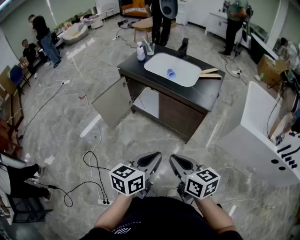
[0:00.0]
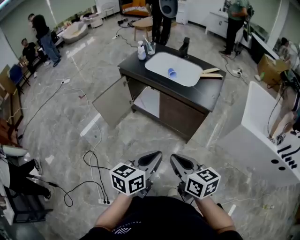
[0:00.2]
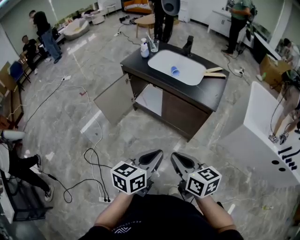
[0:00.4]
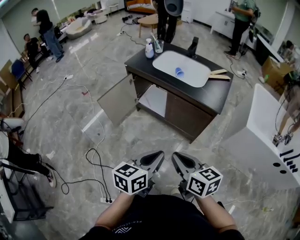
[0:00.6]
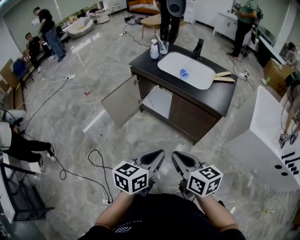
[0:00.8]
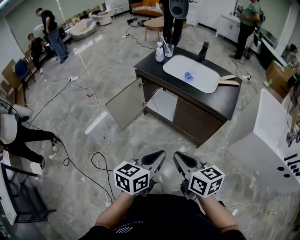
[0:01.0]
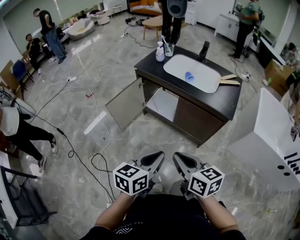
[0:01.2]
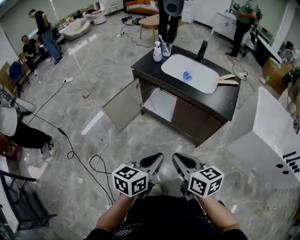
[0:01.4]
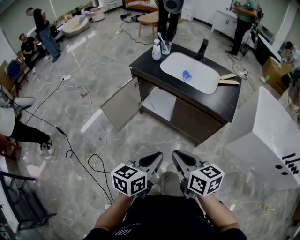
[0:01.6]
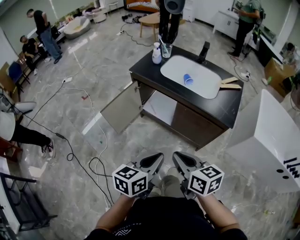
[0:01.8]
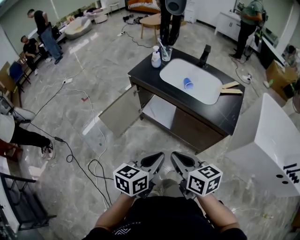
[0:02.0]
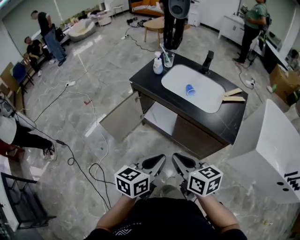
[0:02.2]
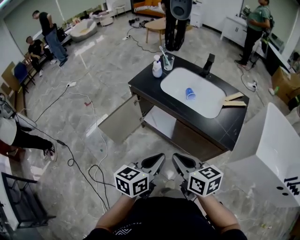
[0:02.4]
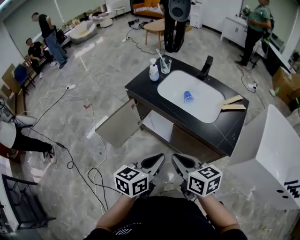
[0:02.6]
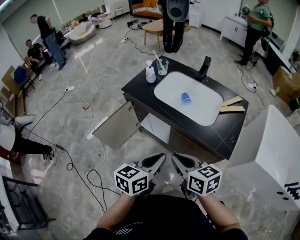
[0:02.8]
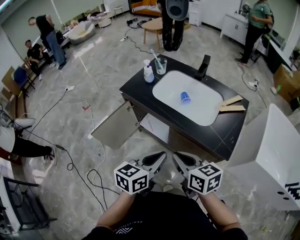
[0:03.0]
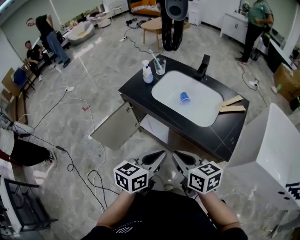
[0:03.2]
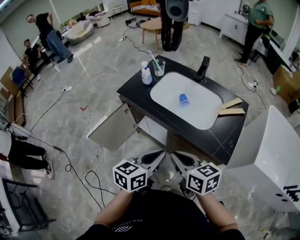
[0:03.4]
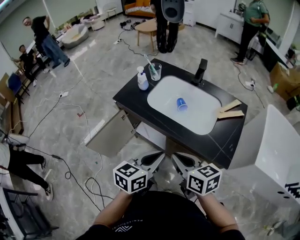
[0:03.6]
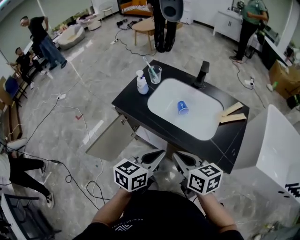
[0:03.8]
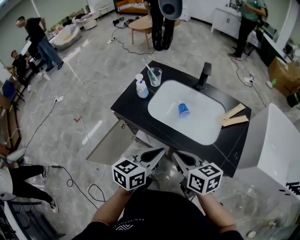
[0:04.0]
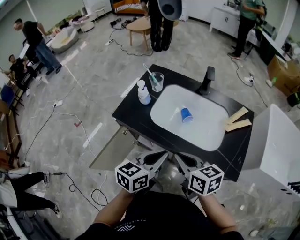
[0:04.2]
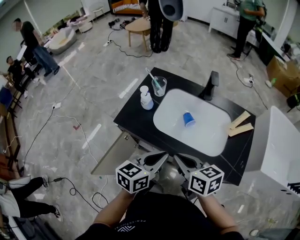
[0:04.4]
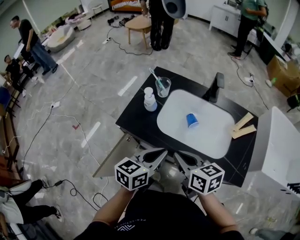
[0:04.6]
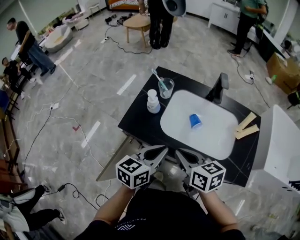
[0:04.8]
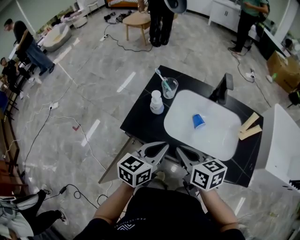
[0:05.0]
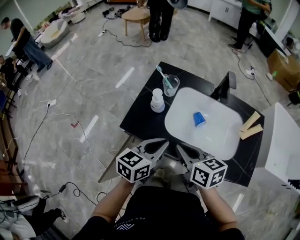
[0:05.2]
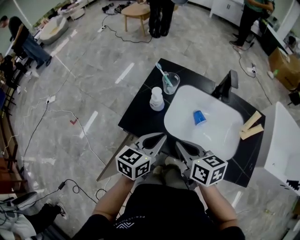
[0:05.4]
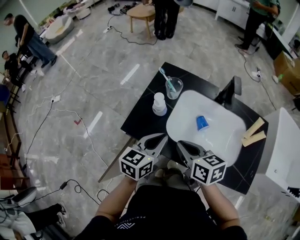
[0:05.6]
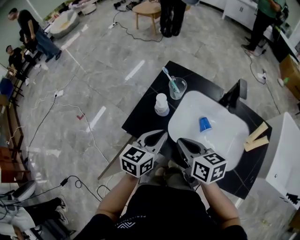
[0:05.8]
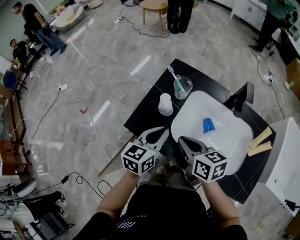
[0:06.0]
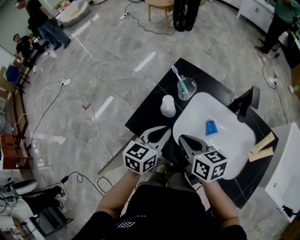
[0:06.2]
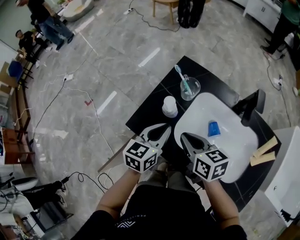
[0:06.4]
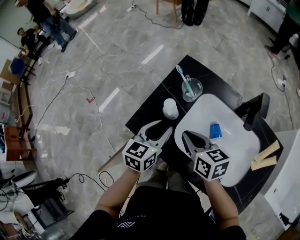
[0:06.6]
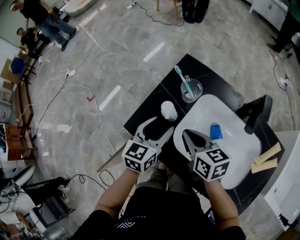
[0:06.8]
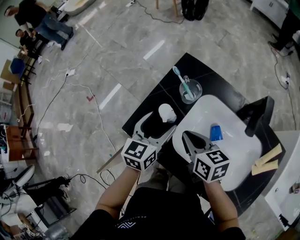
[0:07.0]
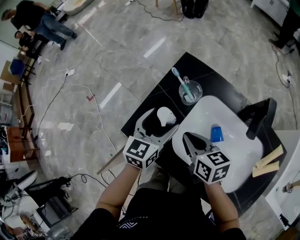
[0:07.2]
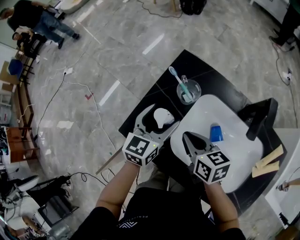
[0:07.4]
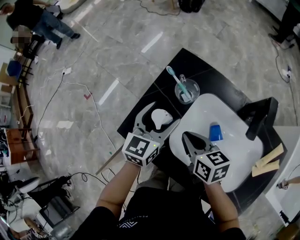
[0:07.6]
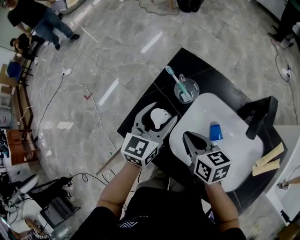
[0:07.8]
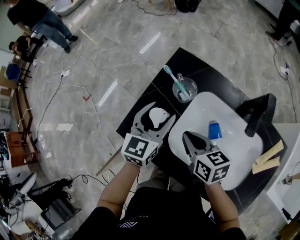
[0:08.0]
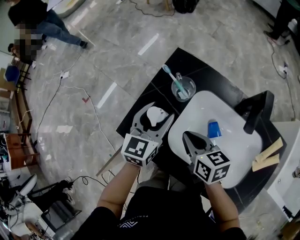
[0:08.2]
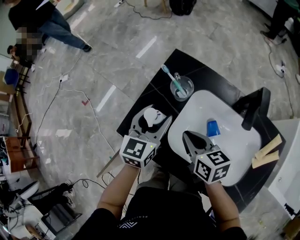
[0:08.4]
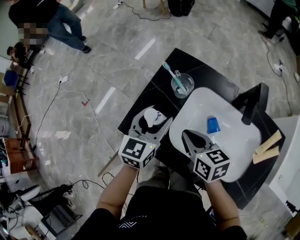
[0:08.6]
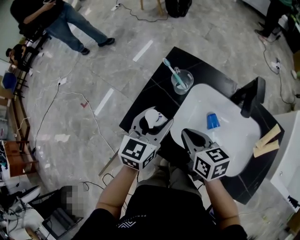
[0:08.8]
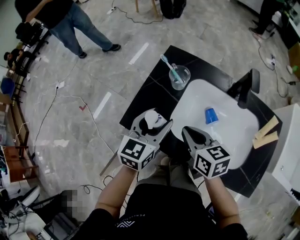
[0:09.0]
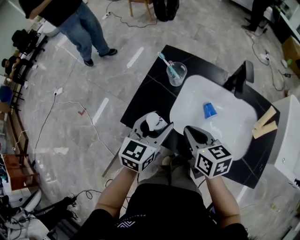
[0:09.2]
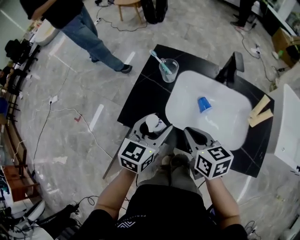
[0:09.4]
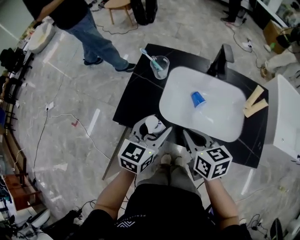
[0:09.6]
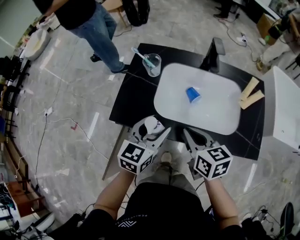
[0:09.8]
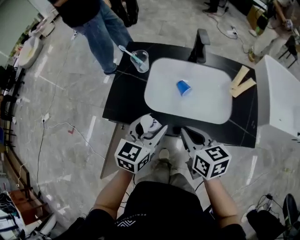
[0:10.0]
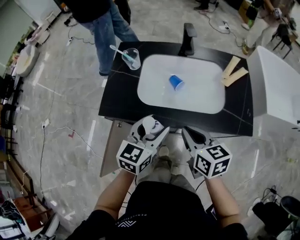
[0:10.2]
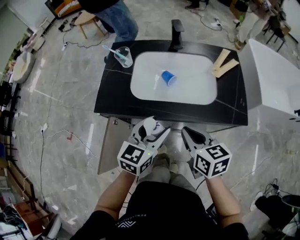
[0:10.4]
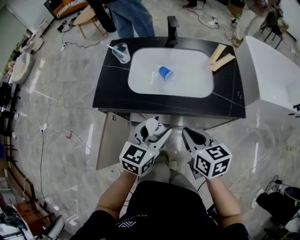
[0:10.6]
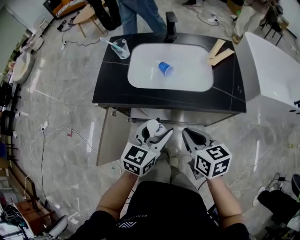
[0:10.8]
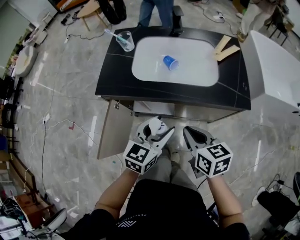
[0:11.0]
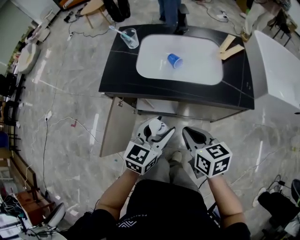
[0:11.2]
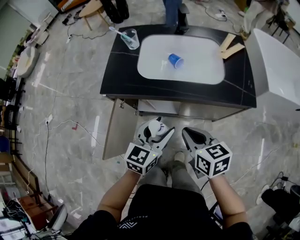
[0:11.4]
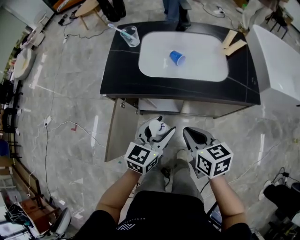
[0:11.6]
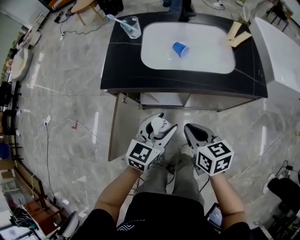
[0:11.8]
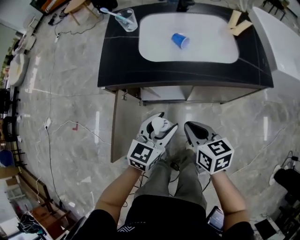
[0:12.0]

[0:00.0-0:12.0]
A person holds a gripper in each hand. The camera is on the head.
0.0 to 1.6 s: The two grippers go about 15 cm to the left and forward.
1.6 to 3.0 s: The grippers both shift forward and to the right by approximately 25 cm.
3.0 to 4.4 s: Both grippers travel together forward, some 20 cm.
4.4 to 6.0 s: The grippers both shift forward and to the left by some 20 cm.
6.0 to 7.6 s: The left gripper moves forward, approximately 10 cm, and opens up; the right gripper shifts roughly 10 cm forward and downward.
7.6 to 9.0 s: The two grippers go approximately 5 cm backward.
9.0 to 10.4 s: The left gripper moves some 25 cm, and rotates roughly 30 degrees, while the right gripper ends up some 25 cm from where it was, and rotates about 20 degrees.
10.4 to 12.0 s: The two grippers go about 15 cm downward, backward and to the left.

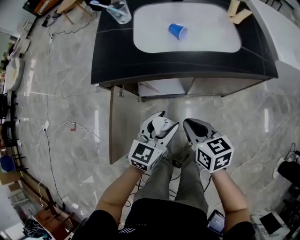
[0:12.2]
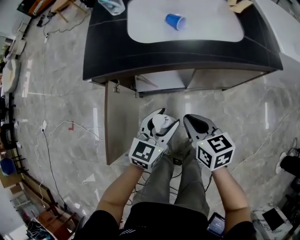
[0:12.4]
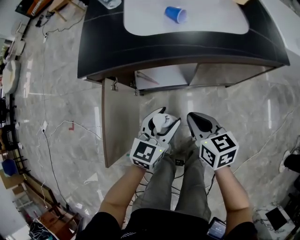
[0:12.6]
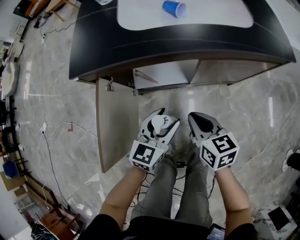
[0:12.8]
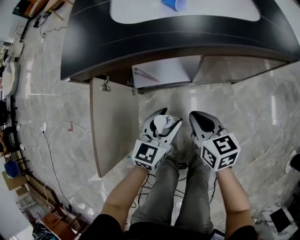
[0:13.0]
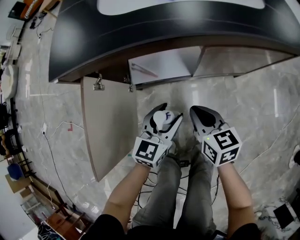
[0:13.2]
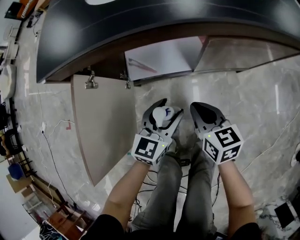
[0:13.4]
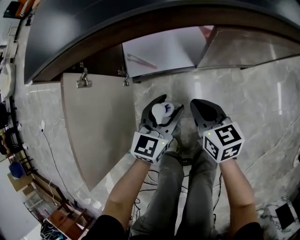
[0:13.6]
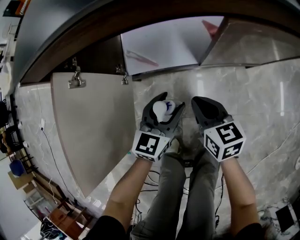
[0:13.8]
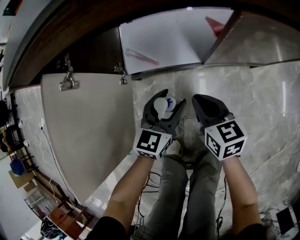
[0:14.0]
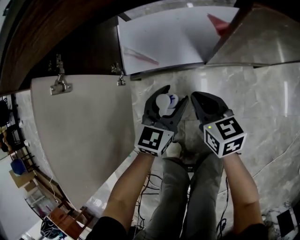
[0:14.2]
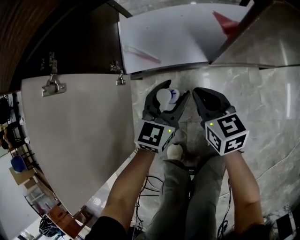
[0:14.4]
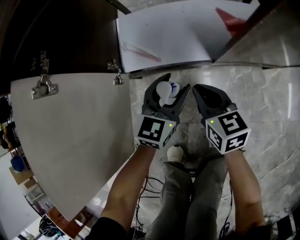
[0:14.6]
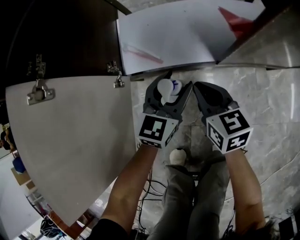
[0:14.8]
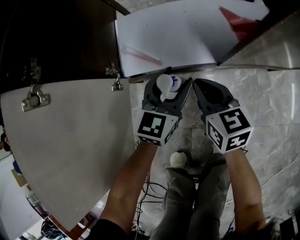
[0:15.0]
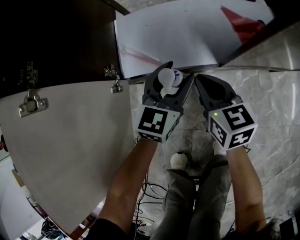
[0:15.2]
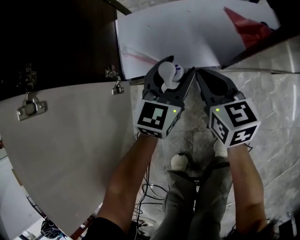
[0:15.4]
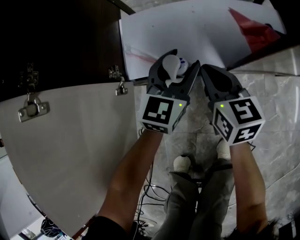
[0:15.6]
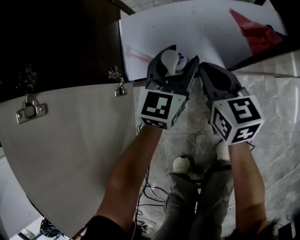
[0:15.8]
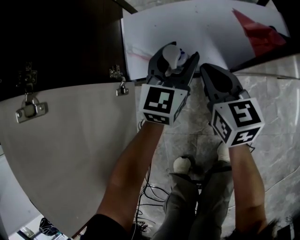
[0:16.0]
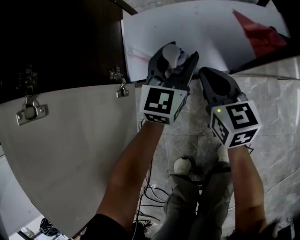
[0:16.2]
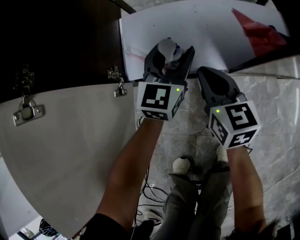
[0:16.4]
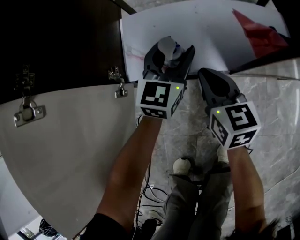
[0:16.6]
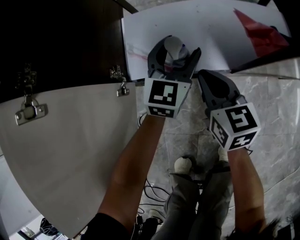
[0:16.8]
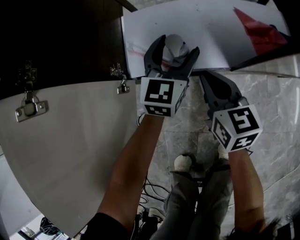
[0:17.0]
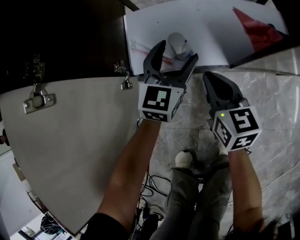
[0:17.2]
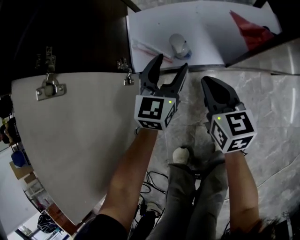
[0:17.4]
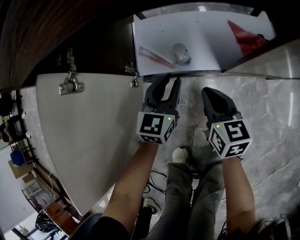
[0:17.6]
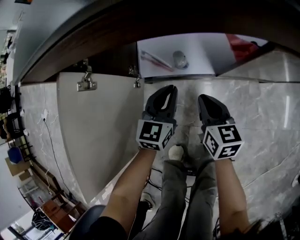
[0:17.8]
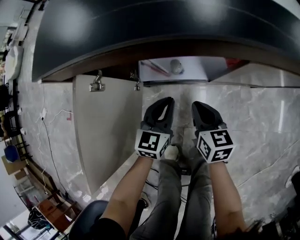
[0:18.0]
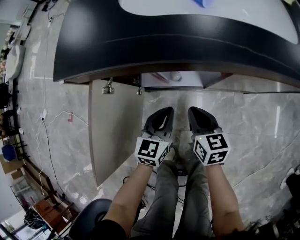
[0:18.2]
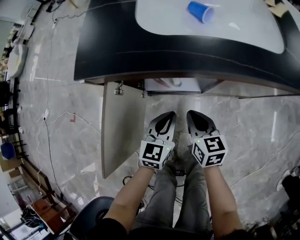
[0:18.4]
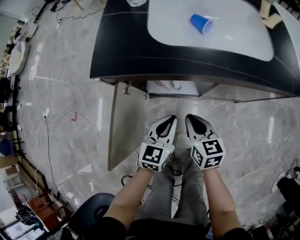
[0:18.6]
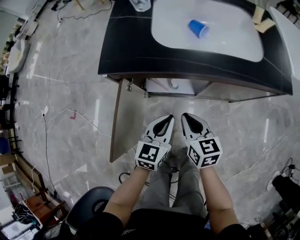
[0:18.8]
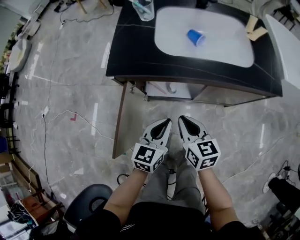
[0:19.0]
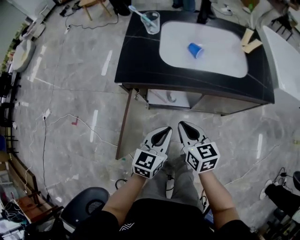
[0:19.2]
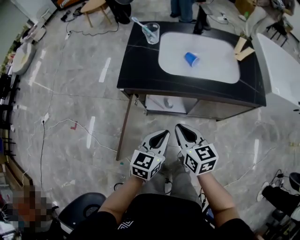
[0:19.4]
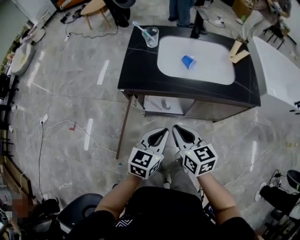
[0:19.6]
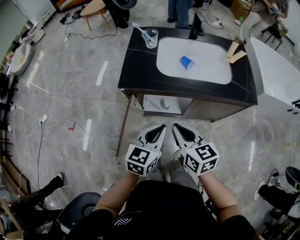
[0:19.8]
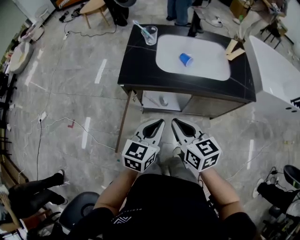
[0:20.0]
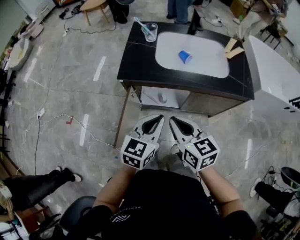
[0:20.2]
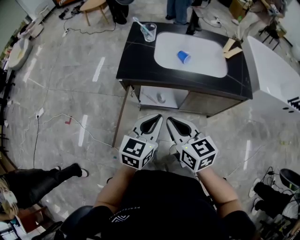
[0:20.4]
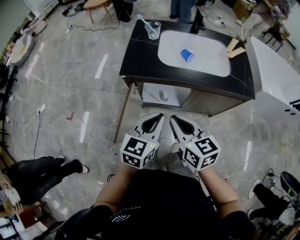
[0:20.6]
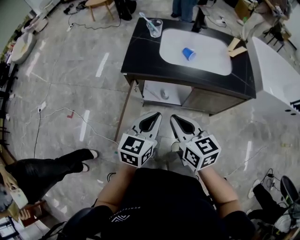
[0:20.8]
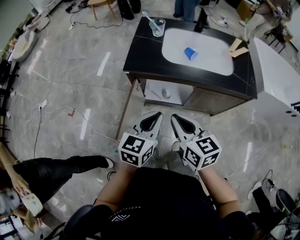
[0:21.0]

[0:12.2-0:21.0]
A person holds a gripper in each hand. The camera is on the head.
12.2 to 13.6 s: Both grippers move downward, some 25 cm.
13.6 to 15.2 s: The two grippers go about 20 cm downward and forward.
15.2 to 16.6 s: The left gripper heads forward, covering approximately 10 cm.
16.6 to 18.0 s: The left gripper heads backward and upward, covering roughly 20 cm, and closes up; the right gripper heads upward and backward, covering some 15 cm.
18.0 to 19.6 s: The grippers both shift upward by some 40 cm.
19.6 to 21.0 s: The right gripper moves upward and backward, roughly 10 cm, while the left gripper moves upward, approximately 5 cm.

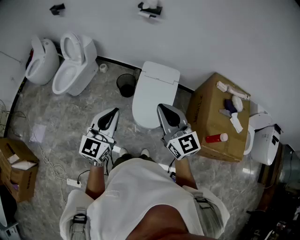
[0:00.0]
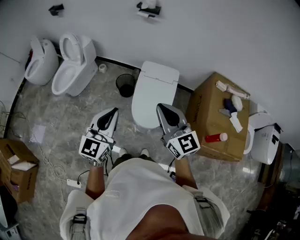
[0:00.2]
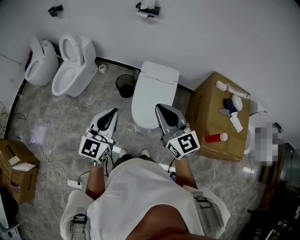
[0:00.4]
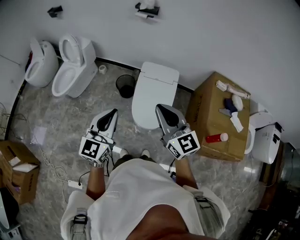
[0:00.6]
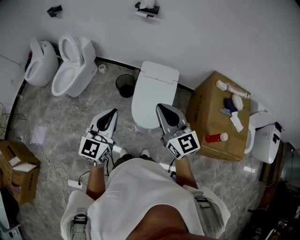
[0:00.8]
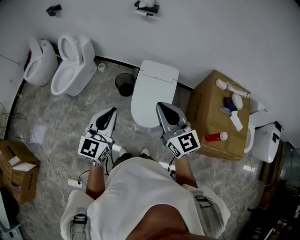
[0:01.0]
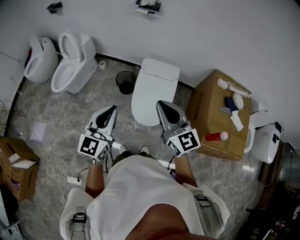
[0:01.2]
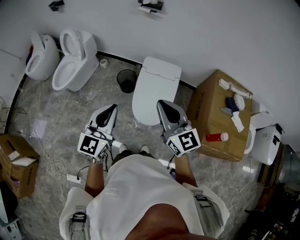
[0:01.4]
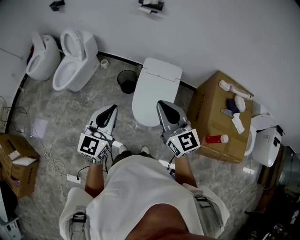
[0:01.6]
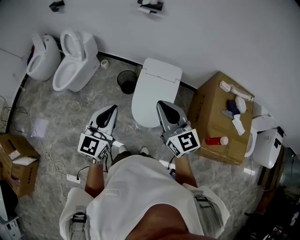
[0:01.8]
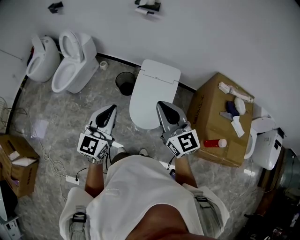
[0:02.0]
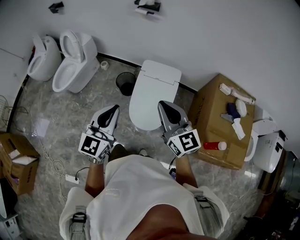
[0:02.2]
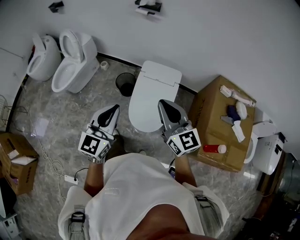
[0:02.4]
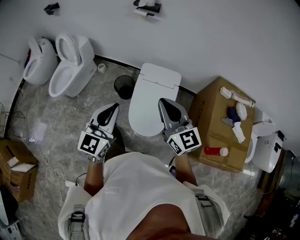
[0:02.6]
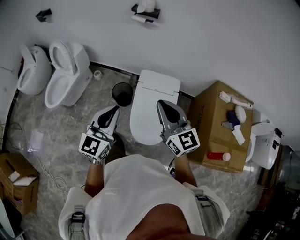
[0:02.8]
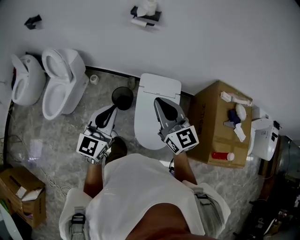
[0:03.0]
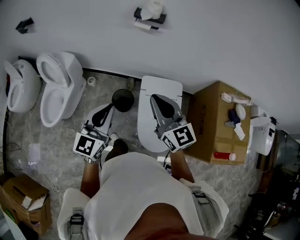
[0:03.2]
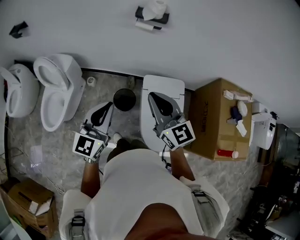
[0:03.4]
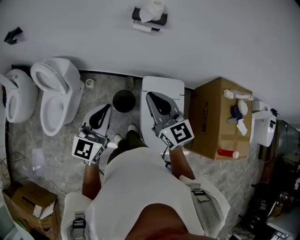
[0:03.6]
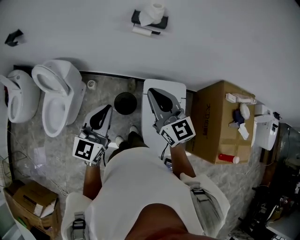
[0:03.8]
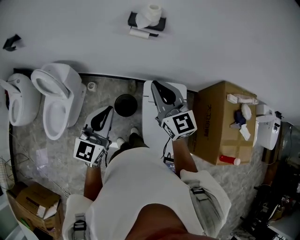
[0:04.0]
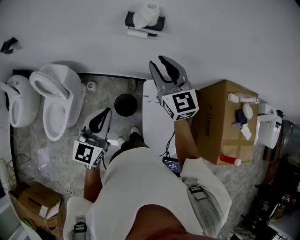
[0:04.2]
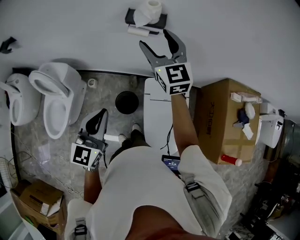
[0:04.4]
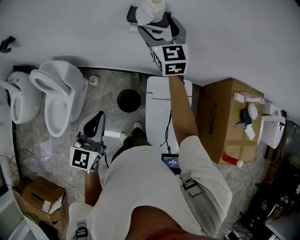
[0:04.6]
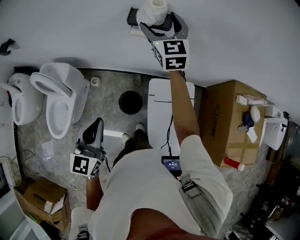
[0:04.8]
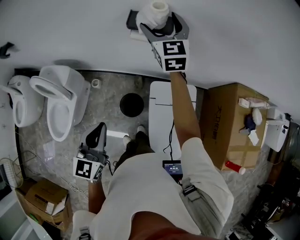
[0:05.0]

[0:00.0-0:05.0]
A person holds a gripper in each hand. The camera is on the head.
0.0 to 1.6 s: The grippers make only small movements.
1.6 to 3.4 s: The pair of grippers is taken forward and to the left, about 40 cm.
3.4 to 5.0 s: The left gripper travels forward and downward by about 15 cm, while the right gripper goes approximately 40 cm forward, changes its angle by approximately 20 degrees, and opens.
